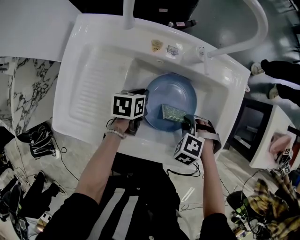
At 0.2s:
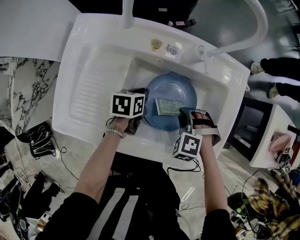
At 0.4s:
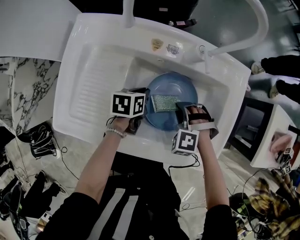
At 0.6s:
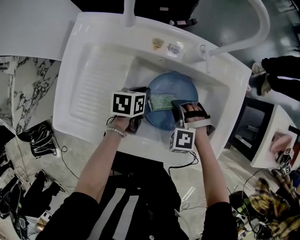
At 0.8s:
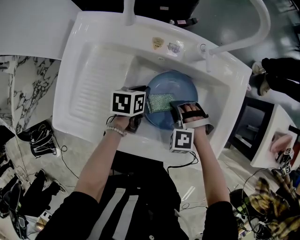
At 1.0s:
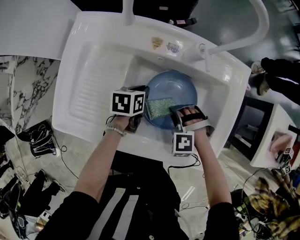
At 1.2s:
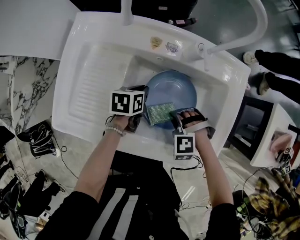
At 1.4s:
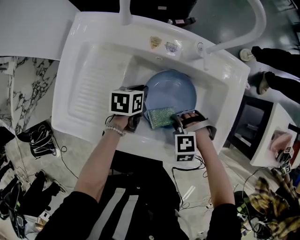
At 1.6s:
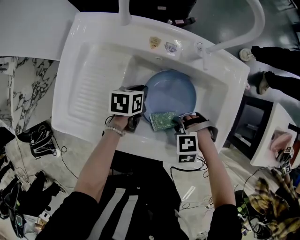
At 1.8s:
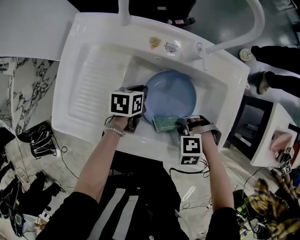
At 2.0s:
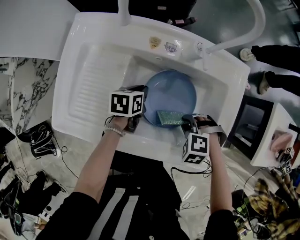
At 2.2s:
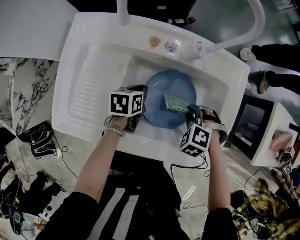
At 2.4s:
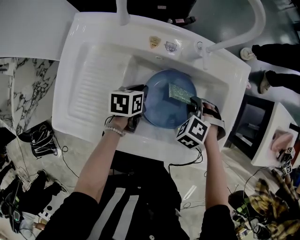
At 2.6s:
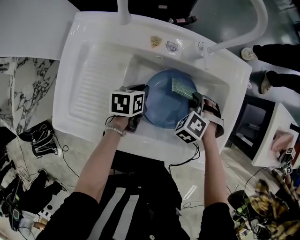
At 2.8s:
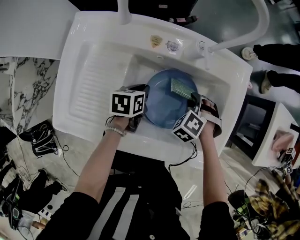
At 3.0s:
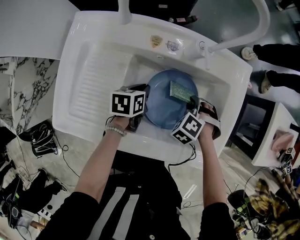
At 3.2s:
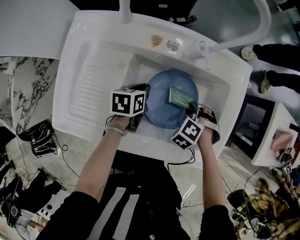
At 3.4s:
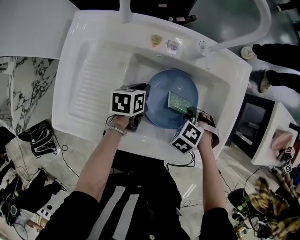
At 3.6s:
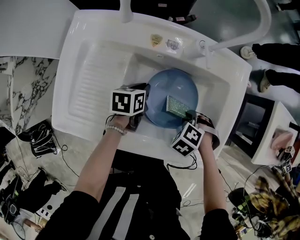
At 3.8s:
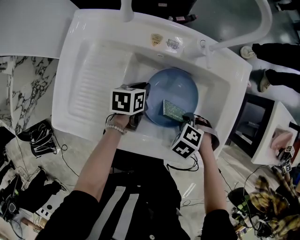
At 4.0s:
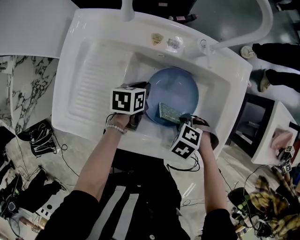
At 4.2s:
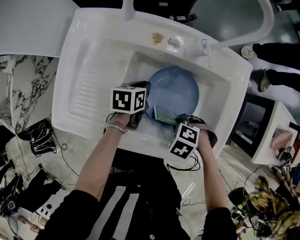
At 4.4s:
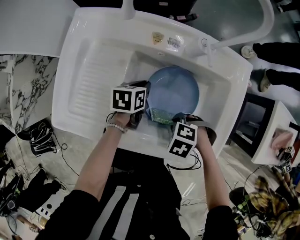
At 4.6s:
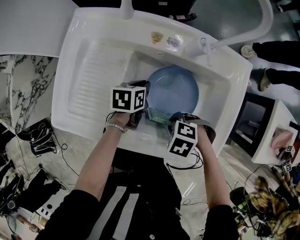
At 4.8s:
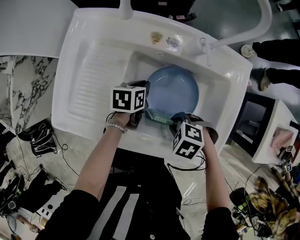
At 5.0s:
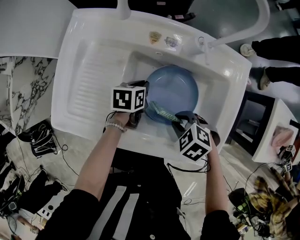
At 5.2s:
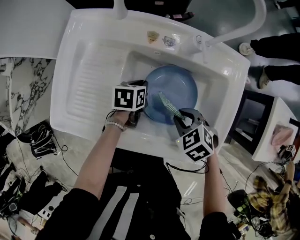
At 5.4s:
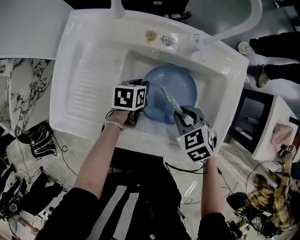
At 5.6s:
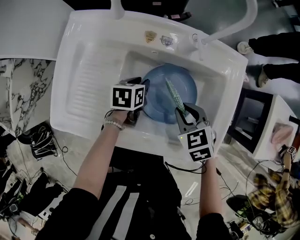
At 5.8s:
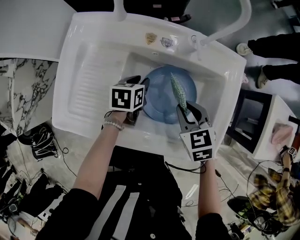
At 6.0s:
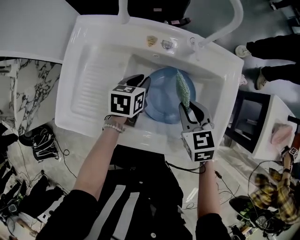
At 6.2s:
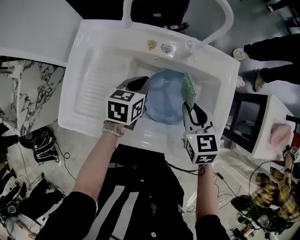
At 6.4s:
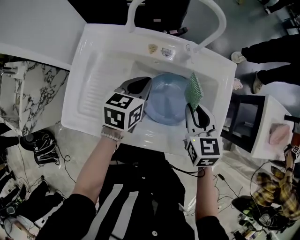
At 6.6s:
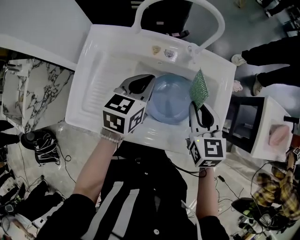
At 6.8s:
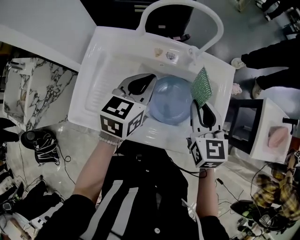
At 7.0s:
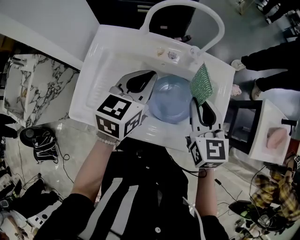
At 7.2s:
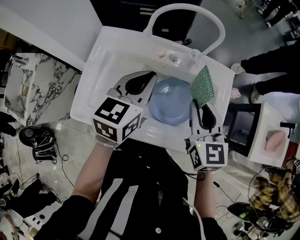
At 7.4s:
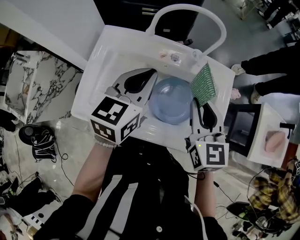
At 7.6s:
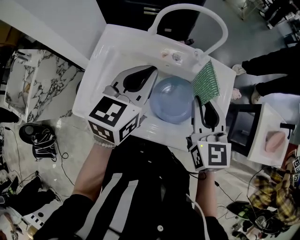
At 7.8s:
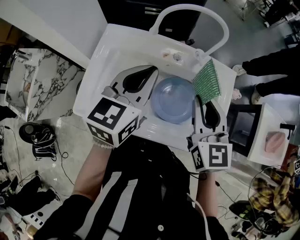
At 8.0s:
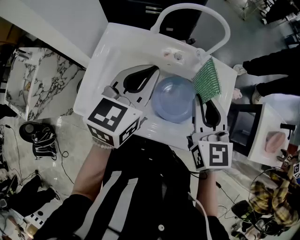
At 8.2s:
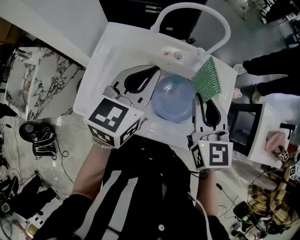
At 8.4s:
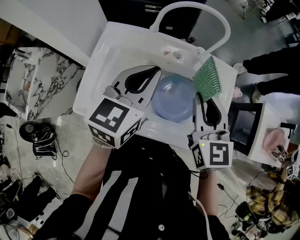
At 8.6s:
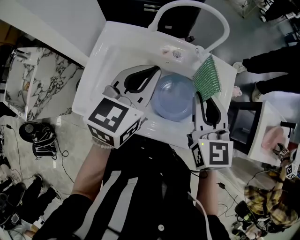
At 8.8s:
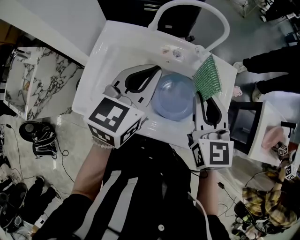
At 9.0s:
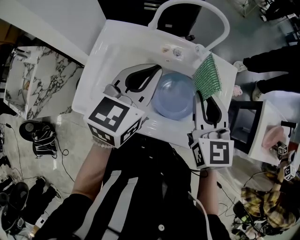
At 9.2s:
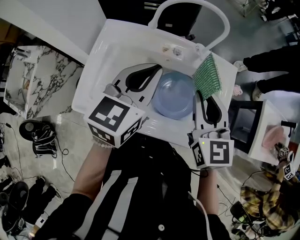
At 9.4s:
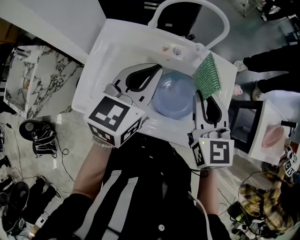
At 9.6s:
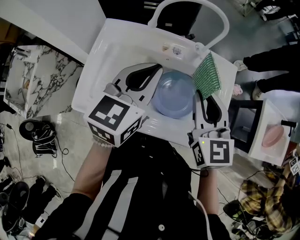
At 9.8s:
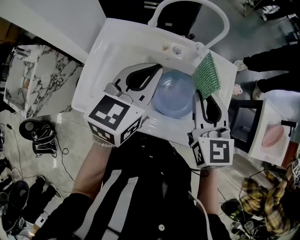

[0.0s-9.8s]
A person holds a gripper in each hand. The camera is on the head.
0.0s to 1.4s: The right gripper turns by roughly 30 degrees.
1.4s to 2.8s: The right gripper shifts by about 10 cm, and swivels about 40 degrees.
2.8s to 4.2s: The right gripper shifts by some 15 cm, and rotates some 30 degrees.
4.2s to 5.6s: The right gripper travels upward by about 10 cm, and turns by approximately 50 degrees.
5.6s to 7.0s: Both grippers move upward, roughly 25 cm. The left gripper points its fingers roughly 30 degrees further upward, and closes up. The right gripper angles its fingers upward, by some 30 degrees.
7.0s to 8.4s: The two grippers go approximately 5 cm upward.
8.4s to 9.8s: Both grippers stay about where they are.

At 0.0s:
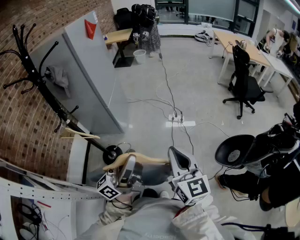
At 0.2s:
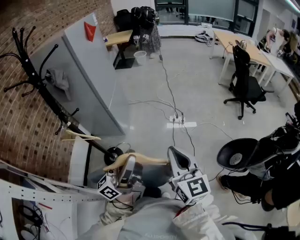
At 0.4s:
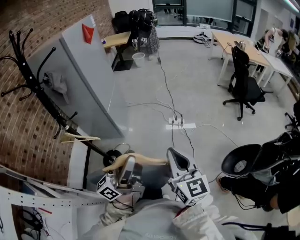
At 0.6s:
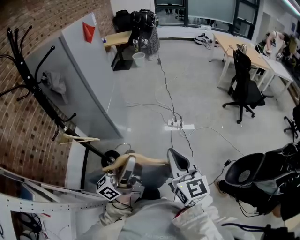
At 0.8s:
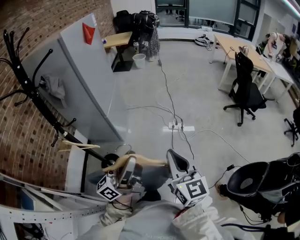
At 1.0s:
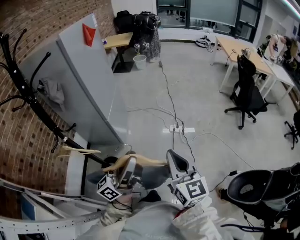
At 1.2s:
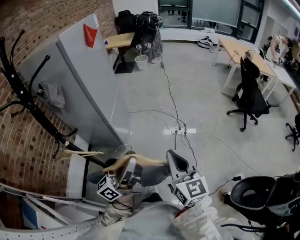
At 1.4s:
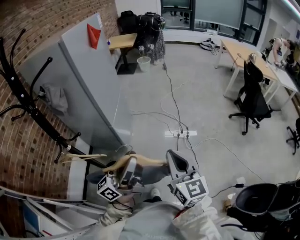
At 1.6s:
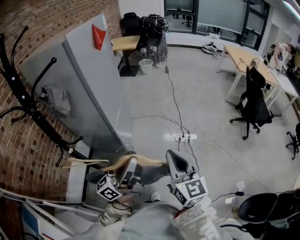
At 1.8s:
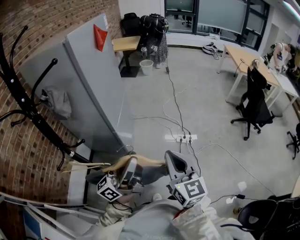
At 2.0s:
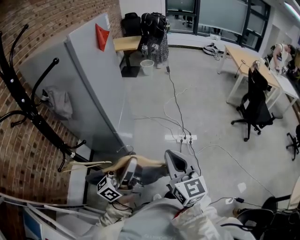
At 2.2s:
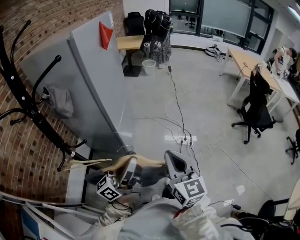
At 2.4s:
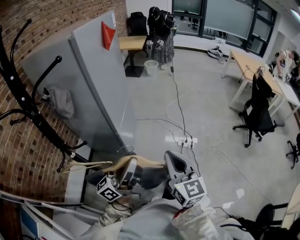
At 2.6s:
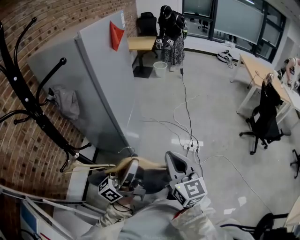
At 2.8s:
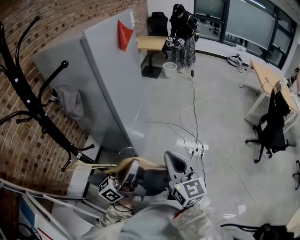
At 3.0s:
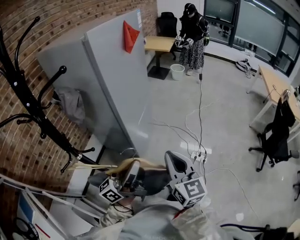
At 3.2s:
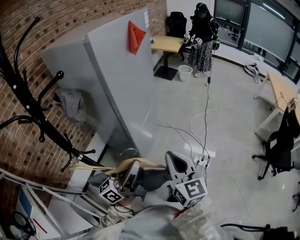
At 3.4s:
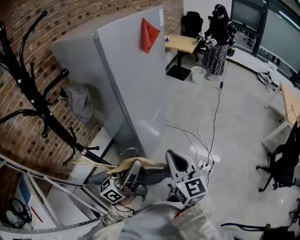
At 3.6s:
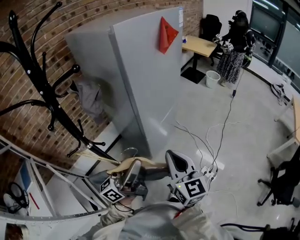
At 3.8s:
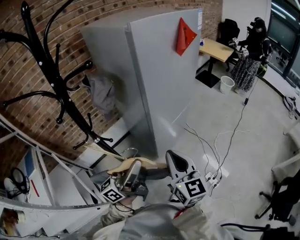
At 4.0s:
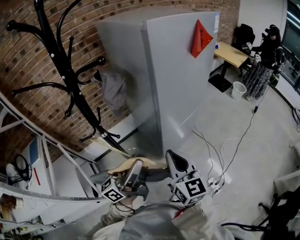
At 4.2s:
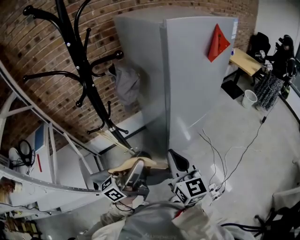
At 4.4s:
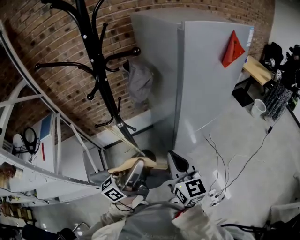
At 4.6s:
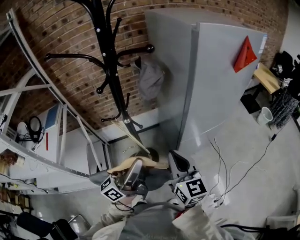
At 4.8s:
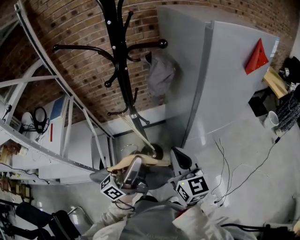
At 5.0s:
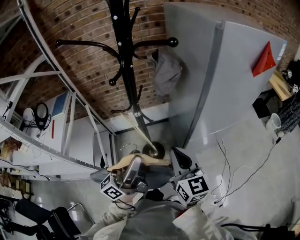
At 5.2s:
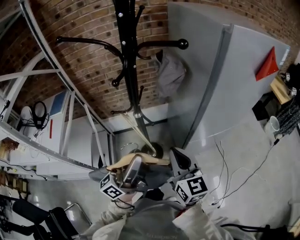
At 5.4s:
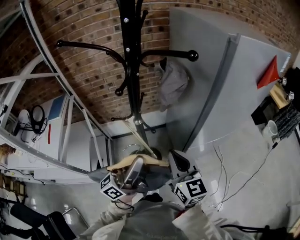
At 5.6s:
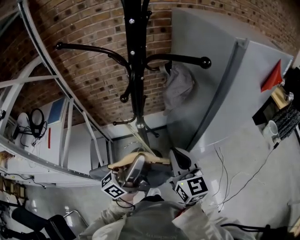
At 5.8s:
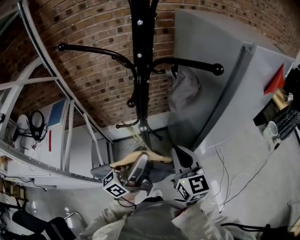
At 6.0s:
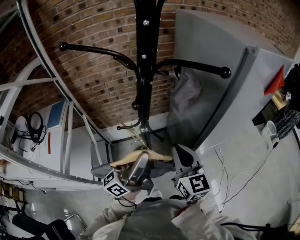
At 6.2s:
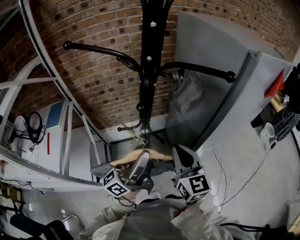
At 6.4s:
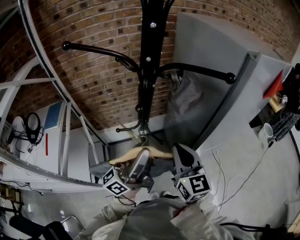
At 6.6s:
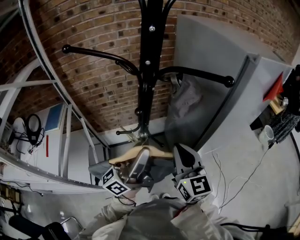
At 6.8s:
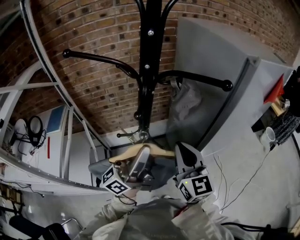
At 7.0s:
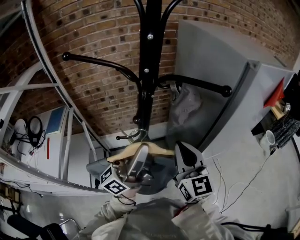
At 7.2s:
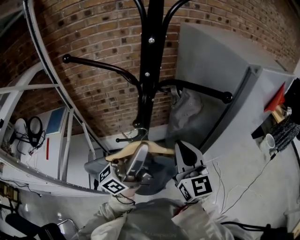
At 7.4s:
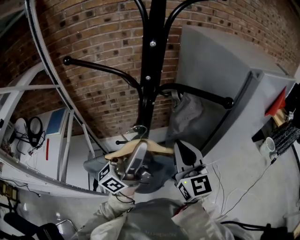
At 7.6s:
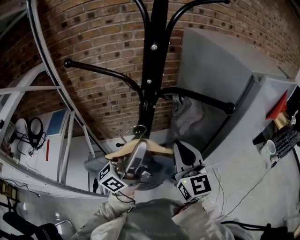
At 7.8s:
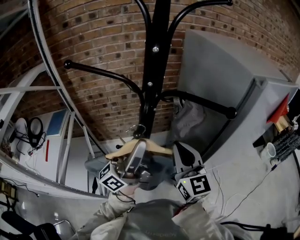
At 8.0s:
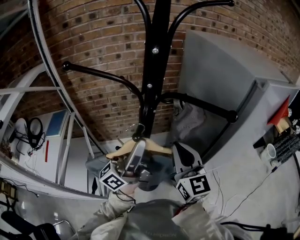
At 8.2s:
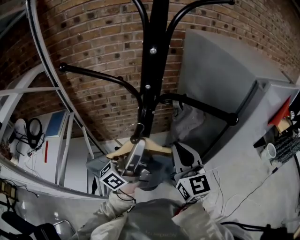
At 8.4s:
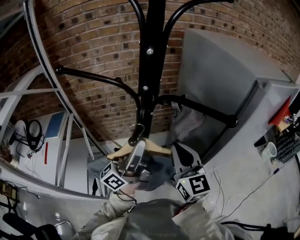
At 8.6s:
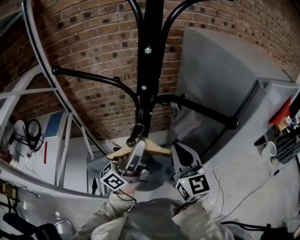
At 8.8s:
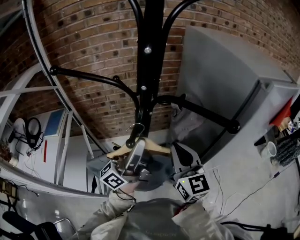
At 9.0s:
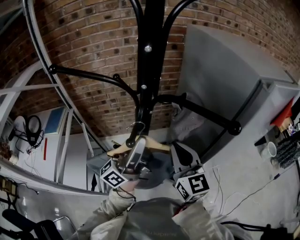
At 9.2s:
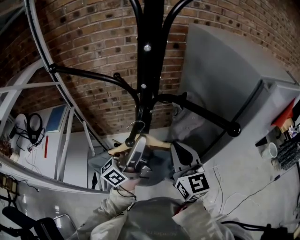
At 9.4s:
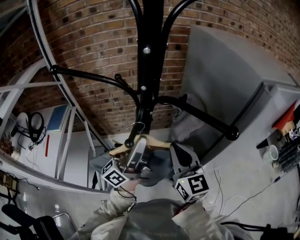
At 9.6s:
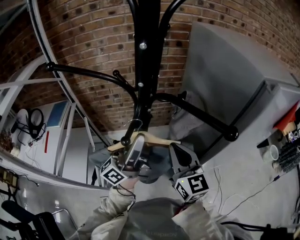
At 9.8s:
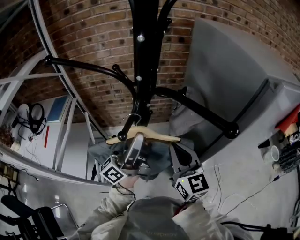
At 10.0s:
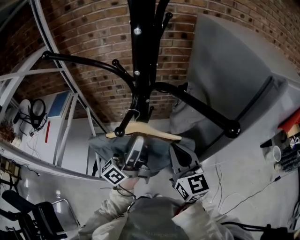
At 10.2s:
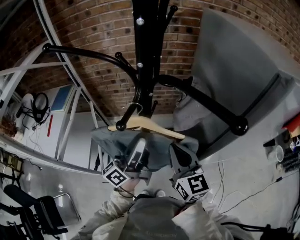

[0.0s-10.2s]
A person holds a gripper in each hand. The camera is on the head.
0.0s to 1.4s: Both grippers move forward and to the left, some 20 cm.
1.4s to 3.0s: The two grippers go about 20 cm forward and to the left.
3.0s to 4.4s: The right gripper shifts by some 15 cm, and rotates about 50 degrees. Meanwhile the left gripper shifts by some 10 cm, and swivels about 50 degrees.
4.4s to 5.8s: The two grippers go some 15 cm to the left and forward.
5.8s to 7.2s: Both grippers travel together upward and forward, about 10 cm.
7.2s to 8.8s: The two grippers go roughly 5 cm forward.
8.8s to 10.2s: The left gripper goes roughly 10 cm downward, while the right gripper is displaced downward by approximately 5 cm.

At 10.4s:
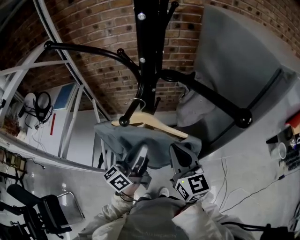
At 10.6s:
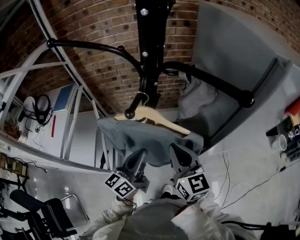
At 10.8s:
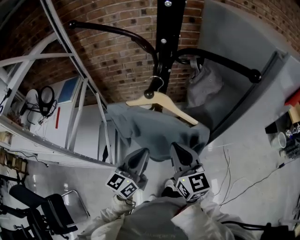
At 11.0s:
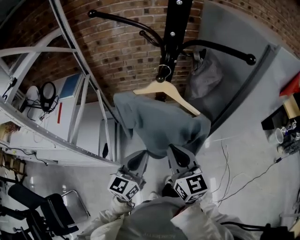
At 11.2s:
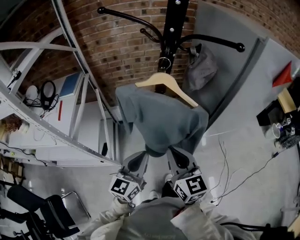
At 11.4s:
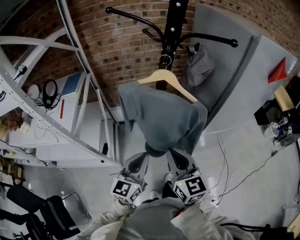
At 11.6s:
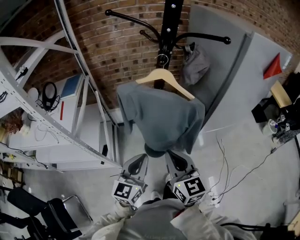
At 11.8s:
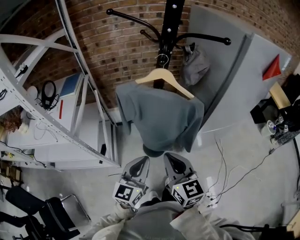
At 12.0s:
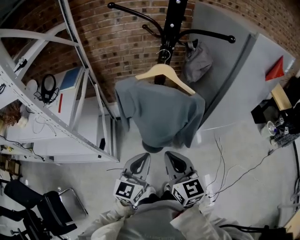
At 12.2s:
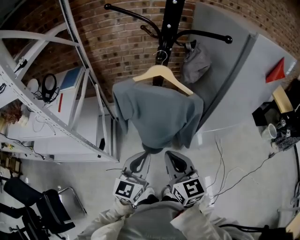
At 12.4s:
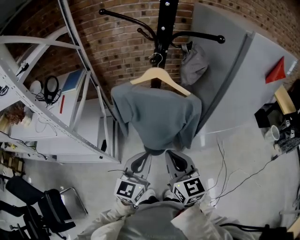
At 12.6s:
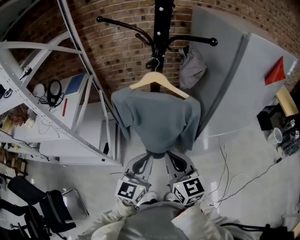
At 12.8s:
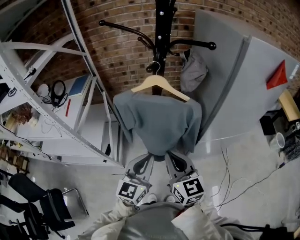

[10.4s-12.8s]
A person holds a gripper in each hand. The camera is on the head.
10.4s to 11.6s: The left gripper heads backward, covering approximately 25 cm, and swivels roughly 40 degrees. The right gripper moves backward and to the left, about 25 cm.
11.6s to 12.8s: The two grippers go some 5 cm to the right.

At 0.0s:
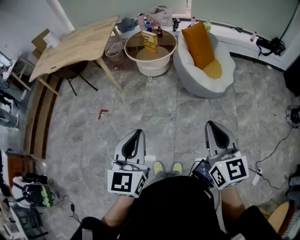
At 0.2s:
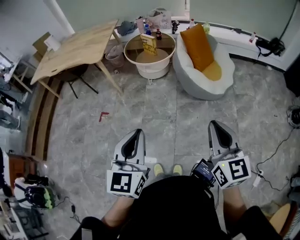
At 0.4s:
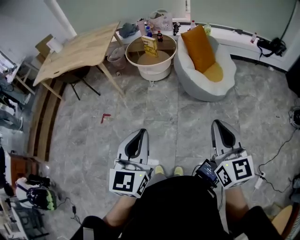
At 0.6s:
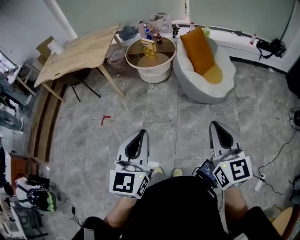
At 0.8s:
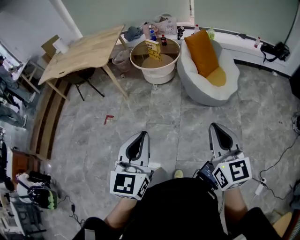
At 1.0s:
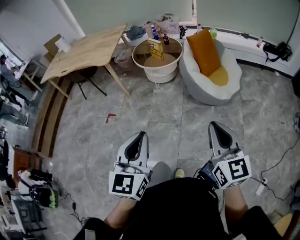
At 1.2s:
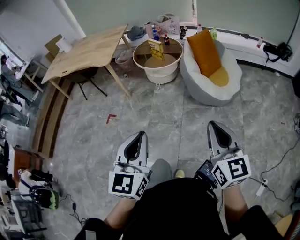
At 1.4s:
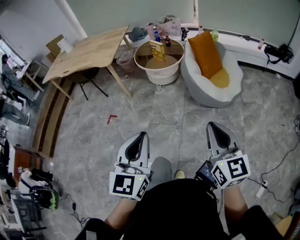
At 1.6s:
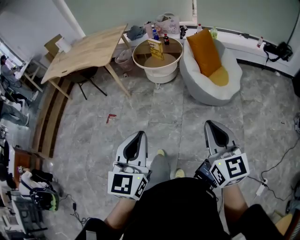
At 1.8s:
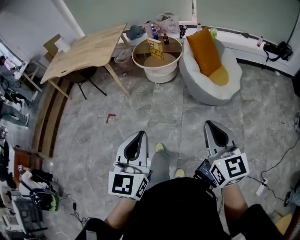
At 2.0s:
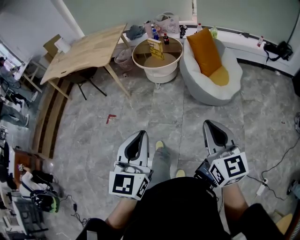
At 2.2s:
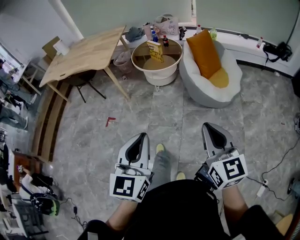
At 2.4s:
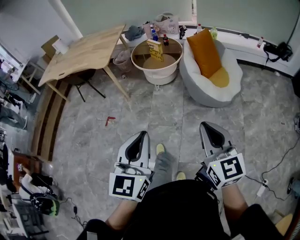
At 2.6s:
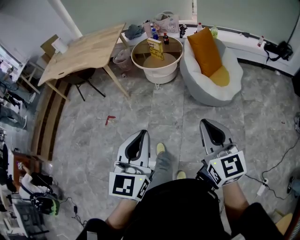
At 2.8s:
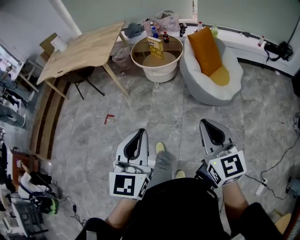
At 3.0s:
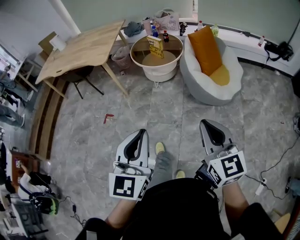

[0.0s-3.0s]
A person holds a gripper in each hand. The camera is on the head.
0.0s to 1.6s: The left gripper changes place by about 5 cm.
1.6s to 3.0s: The grippers both shift forward by about 5 cm.
